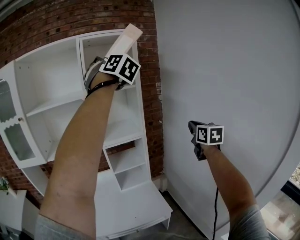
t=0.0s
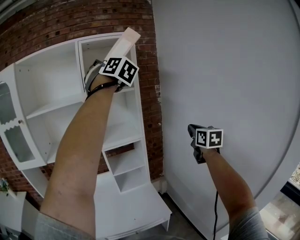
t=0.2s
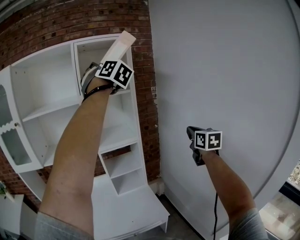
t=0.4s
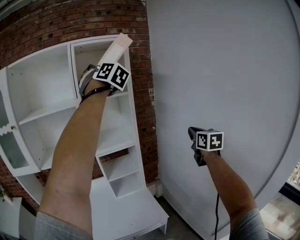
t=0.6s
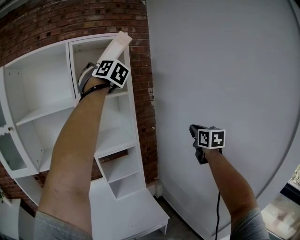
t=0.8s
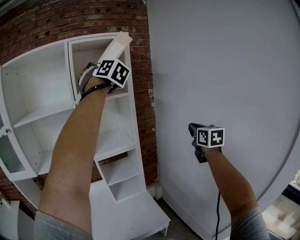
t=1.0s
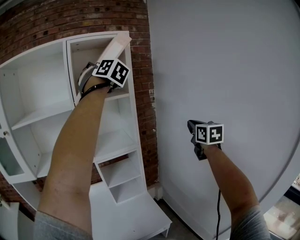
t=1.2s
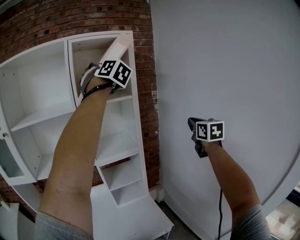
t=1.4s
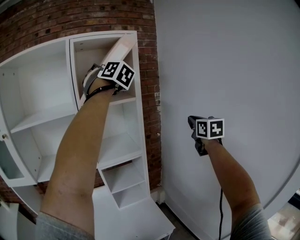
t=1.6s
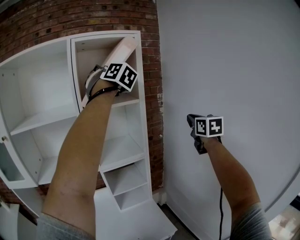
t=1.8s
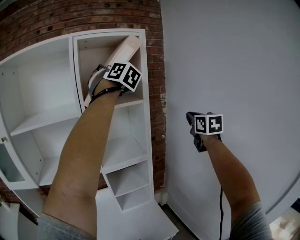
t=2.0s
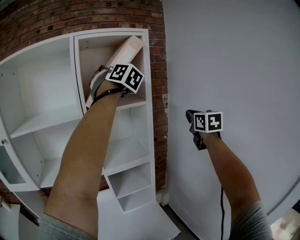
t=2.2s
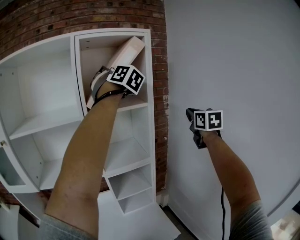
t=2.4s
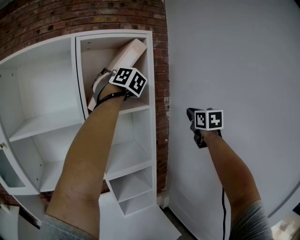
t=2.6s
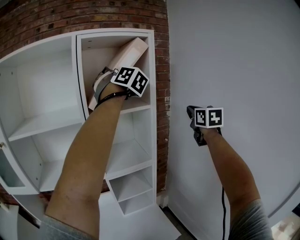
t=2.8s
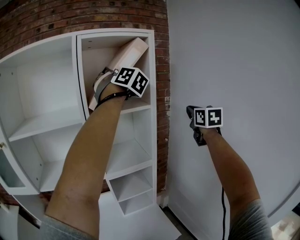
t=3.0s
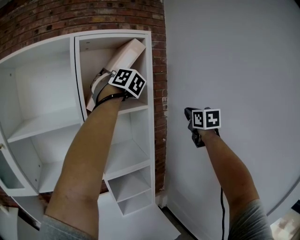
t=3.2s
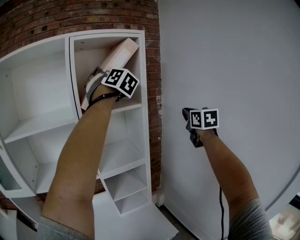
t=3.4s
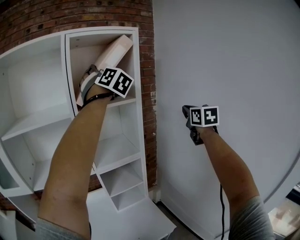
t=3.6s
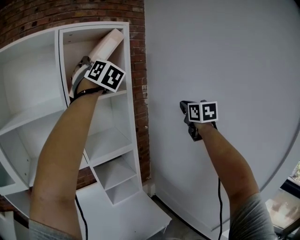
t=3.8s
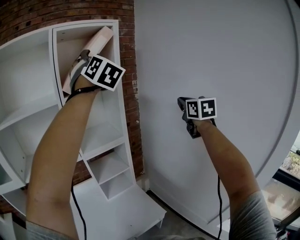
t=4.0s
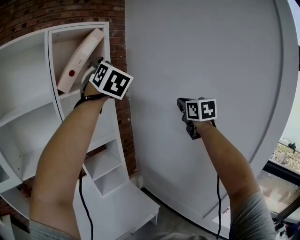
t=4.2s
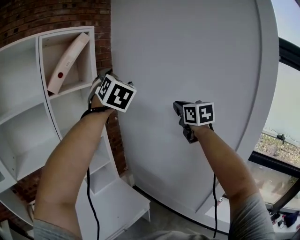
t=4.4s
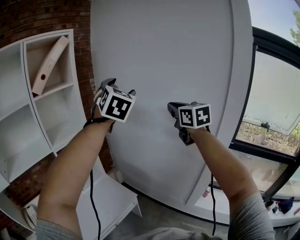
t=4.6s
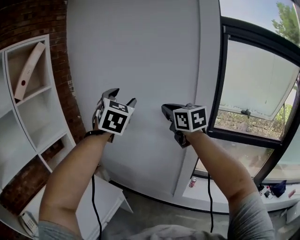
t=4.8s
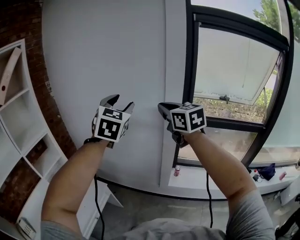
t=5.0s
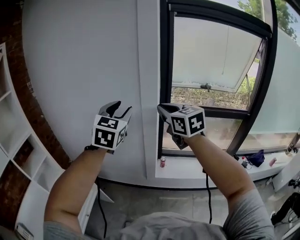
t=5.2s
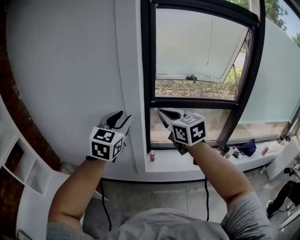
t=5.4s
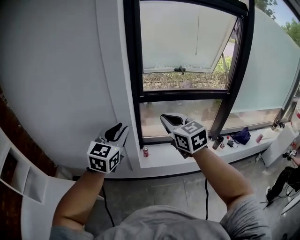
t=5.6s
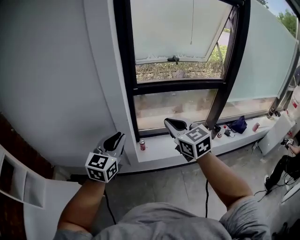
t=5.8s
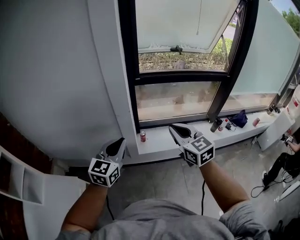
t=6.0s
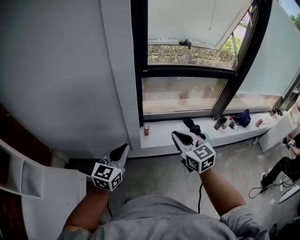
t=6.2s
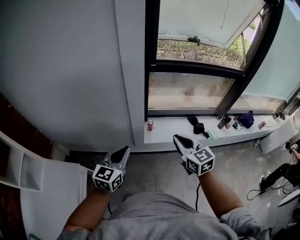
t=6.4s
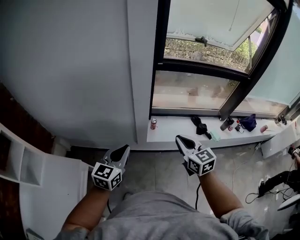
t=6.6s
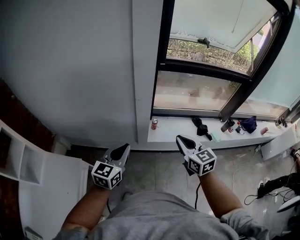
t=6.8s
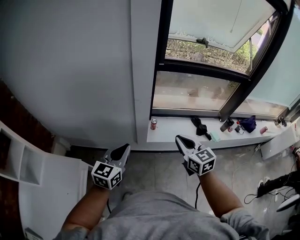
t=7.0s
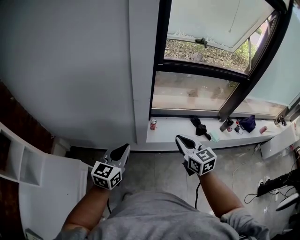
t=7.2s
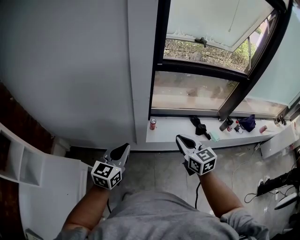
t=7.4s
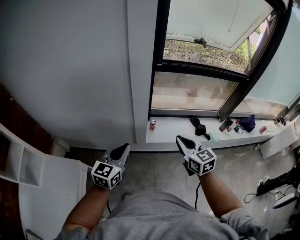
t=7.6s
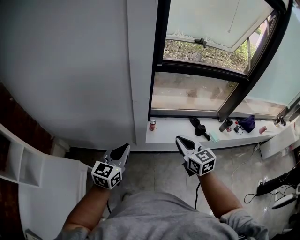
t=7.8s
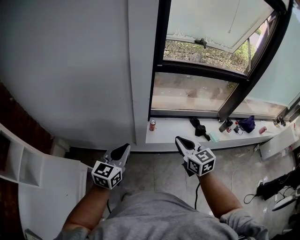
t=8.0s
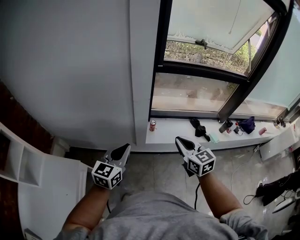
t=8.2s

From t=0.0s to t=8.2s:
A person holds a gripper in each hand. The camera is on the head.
From t=0.0s to t=1.6s: The right gripper goes approximately 15 cm forward and upward; the left gripper shifts some 15 cm forward.
From t=1.6s to t=3.2s: The right gripper goes some 10 cm forward and upward. Meanwhile the left gripper moves forward, some 5 cm.
From t=3.2s to t=5.0s: Both grippers are carried some 70 cm. The right gripper turns by about 30 degrees. The left gripper swivels approximately 90 degrees.
From t=5.0s to t=6.6s: Both grippers move downward, roughly 40 cm. The left gripper swivels some 50 degrees, and closes its fingers, while the right gripper rotates about 20 degrees.
From t=6.6s to t=8.2s: The two grippers keep their place.

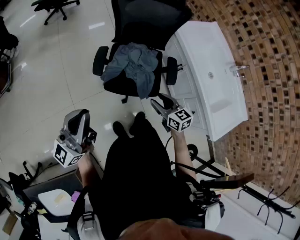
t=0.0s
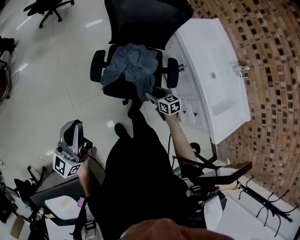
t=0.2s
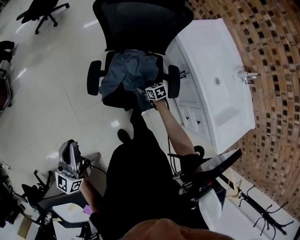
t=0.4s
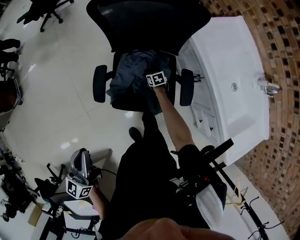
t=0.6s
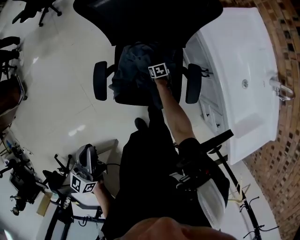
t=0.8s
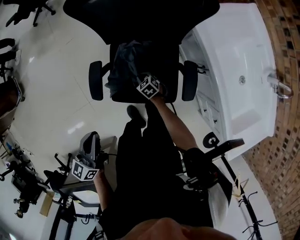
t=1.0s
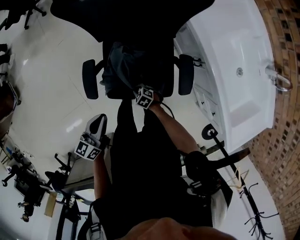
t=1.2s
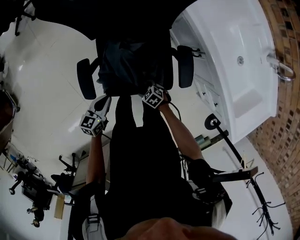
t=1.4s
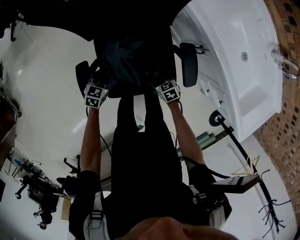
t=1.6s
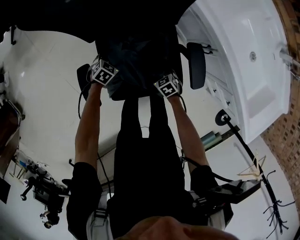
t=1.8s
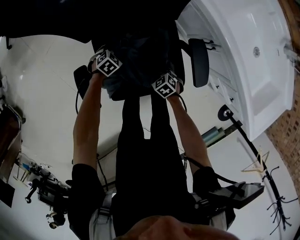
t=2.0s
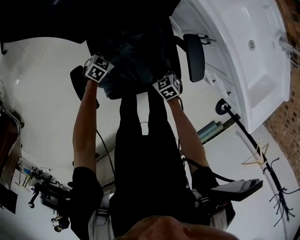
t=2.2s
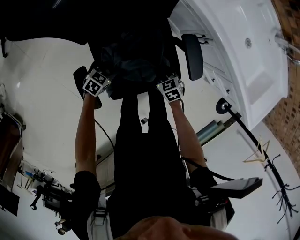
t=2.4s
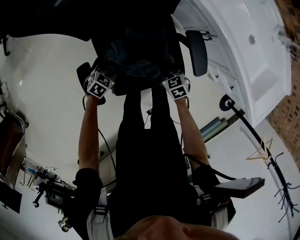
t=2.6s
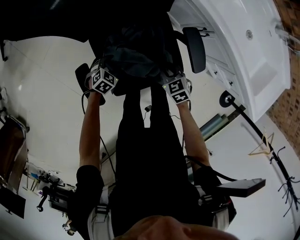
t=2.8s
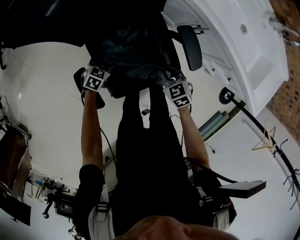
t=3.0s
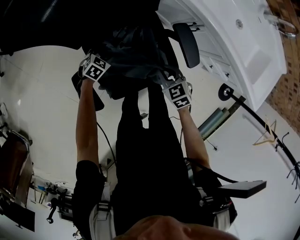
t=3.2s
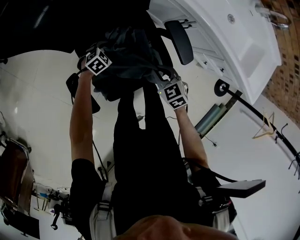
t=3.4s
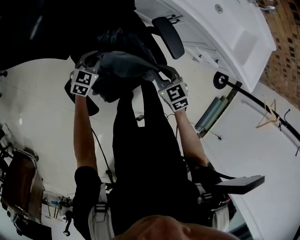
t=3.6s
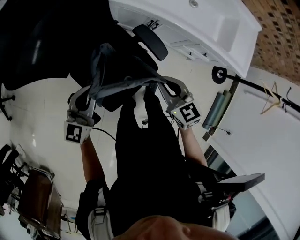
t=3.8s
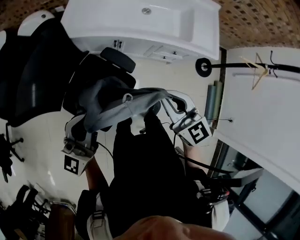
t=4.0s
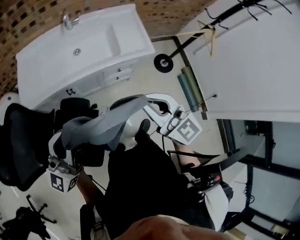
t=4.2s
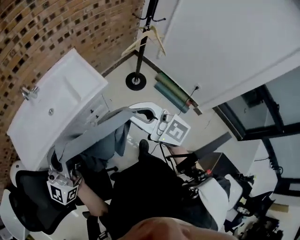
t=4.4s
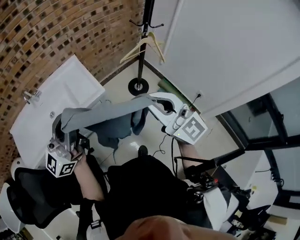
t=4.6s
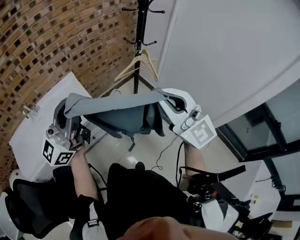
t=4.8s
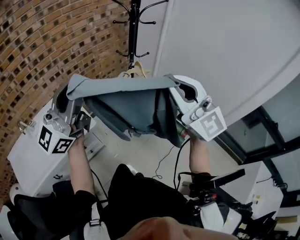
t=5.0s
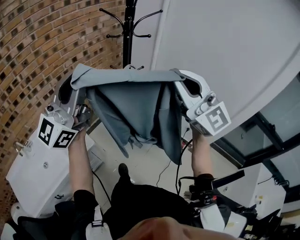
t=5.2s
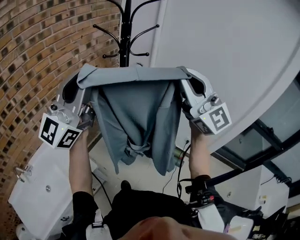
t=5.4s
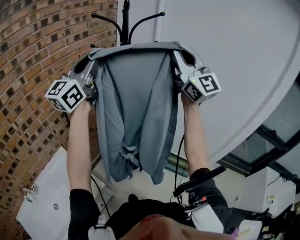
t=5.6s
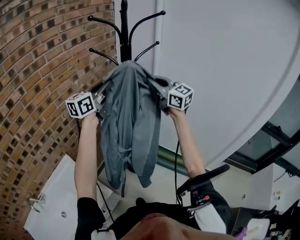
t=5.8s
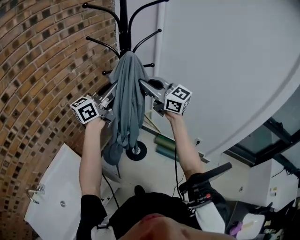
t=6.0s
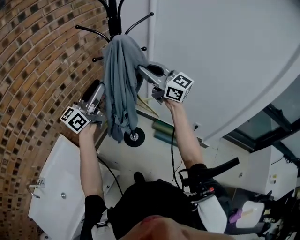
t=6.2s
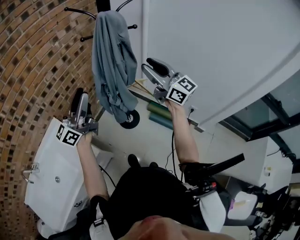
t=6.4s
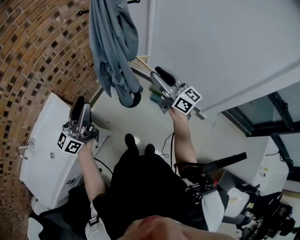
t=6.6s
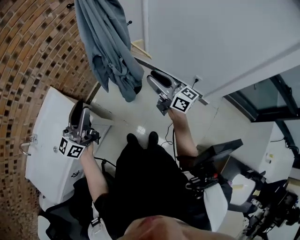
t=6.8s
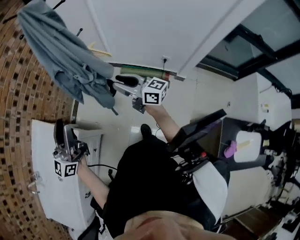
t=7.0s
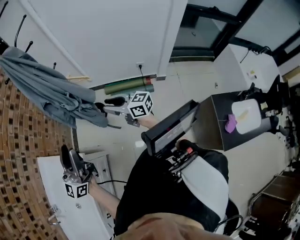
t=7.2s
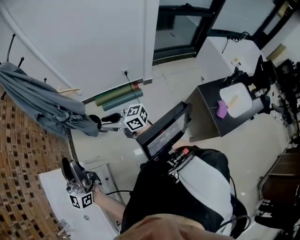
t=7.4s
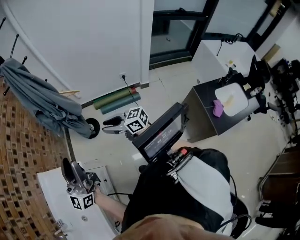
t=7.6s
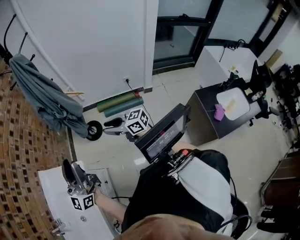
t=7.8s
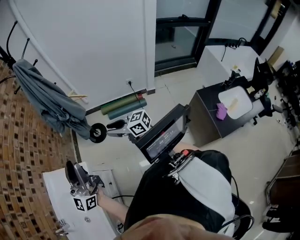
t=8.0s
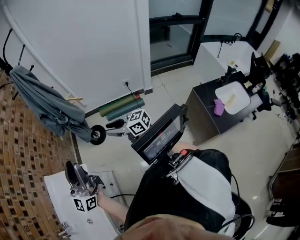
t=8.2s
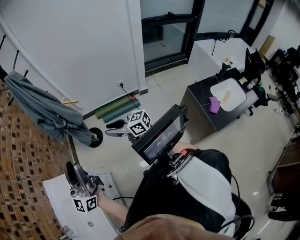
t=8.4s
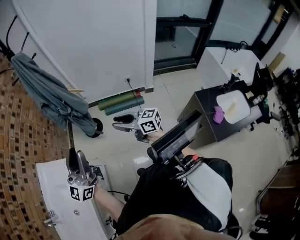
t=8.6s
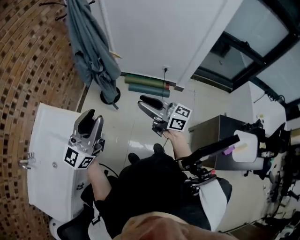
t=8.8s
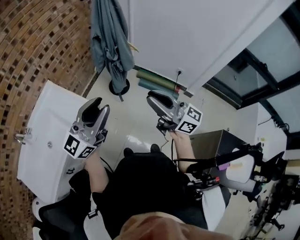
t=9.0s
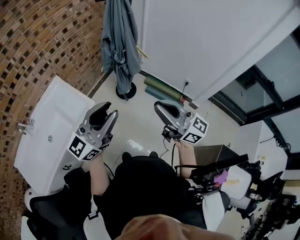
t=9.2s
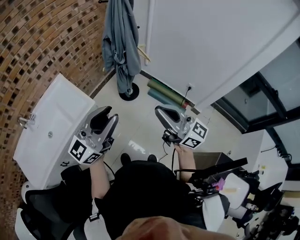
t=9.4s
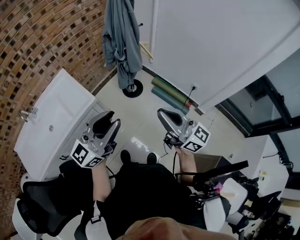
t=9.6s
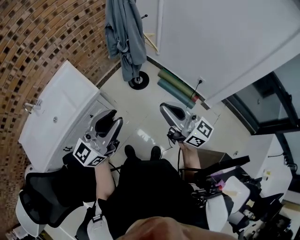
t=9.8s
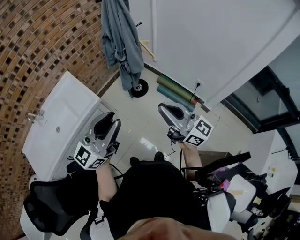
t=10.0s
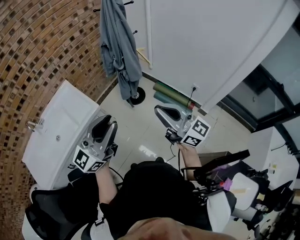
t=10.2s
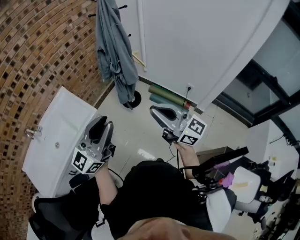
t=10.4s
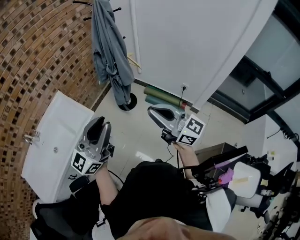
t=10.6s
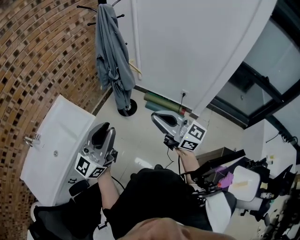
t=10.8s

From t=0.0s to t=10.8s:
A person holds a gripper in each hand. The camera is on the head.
From t=0.0s to t=1.6s: The two grippers go some 50 cm downward. The left gripper tilts its fingers some 70 degrees downward. The right gripper swivels some 30 degrees, and opens.
From t=1.6s to t=3.0s: The left gripper moves downward, roughly 5 cm, turns by some 20 degrees, and opens up, while the right gripper is displaced upward by roughly 10 cm, and closes up.
From t=3.0s to t=4.6s: The two grippers travel together, approximately 70 cm. The left gripper goes approximately 80 cm upward, tips its fingers upward by roughly 90 degrees, and closes; the right gripper tilts its fingers roughly 60 degrees upward.
From t=4.6s to t=6.2s: Both grippers are carried forward, some 50 cm. The left gripper changes its angle by some 30 degrees, and opens.
From t=6.2s to t=7.8s: The two grippers travel together, backward, some 40 cm. The right gripper goes approximately 25 cm downward, and changes its angle by some 40 degrees.
From t=7.8s to t=9.2s: The right gripper goes roughly 20 cm upward, to the right and backward, and changes its angle by some 30 degrees; the left gripper travels to the right by about 10 cm.
From t=9.2s to t=10.8s: The grippers both shift backward by about 5 cm.

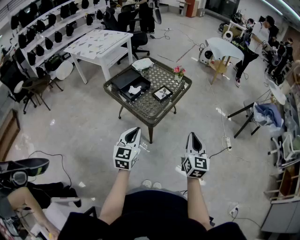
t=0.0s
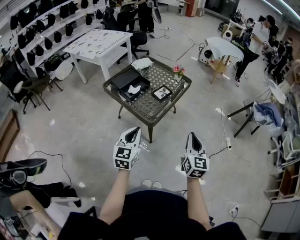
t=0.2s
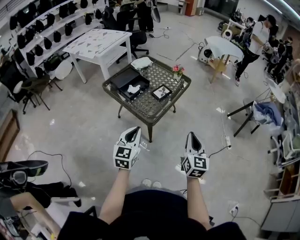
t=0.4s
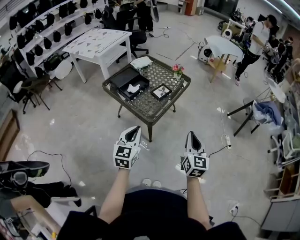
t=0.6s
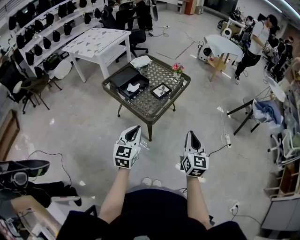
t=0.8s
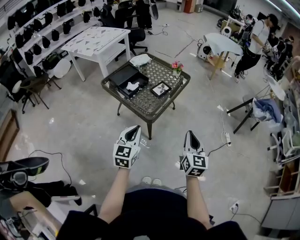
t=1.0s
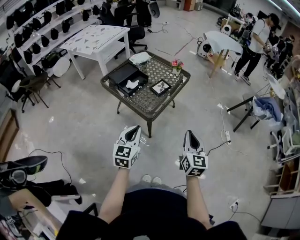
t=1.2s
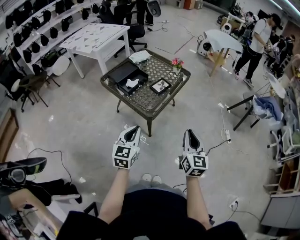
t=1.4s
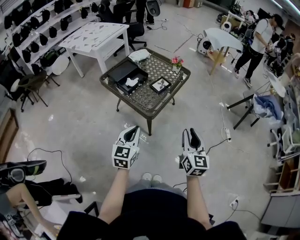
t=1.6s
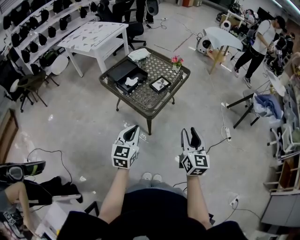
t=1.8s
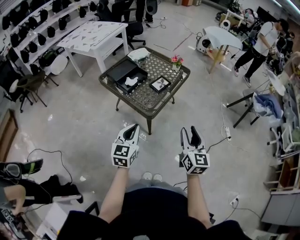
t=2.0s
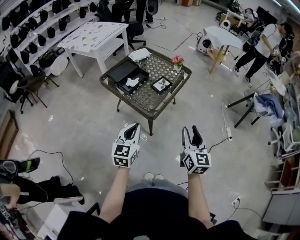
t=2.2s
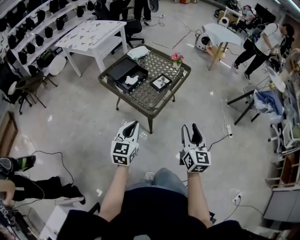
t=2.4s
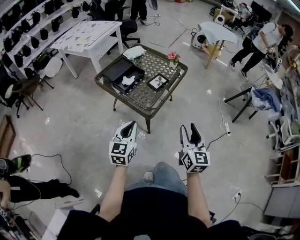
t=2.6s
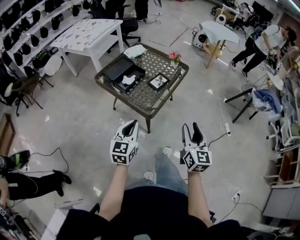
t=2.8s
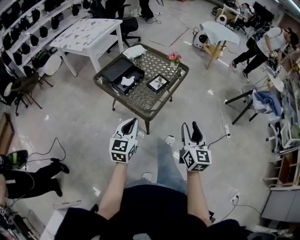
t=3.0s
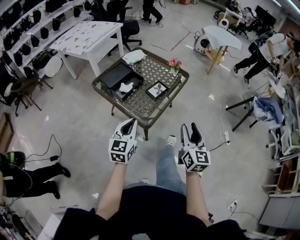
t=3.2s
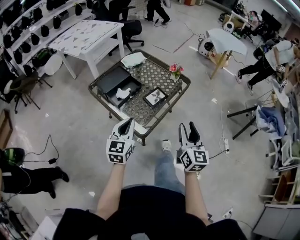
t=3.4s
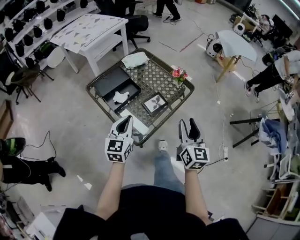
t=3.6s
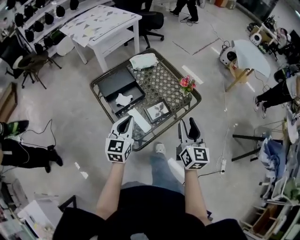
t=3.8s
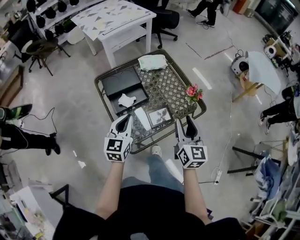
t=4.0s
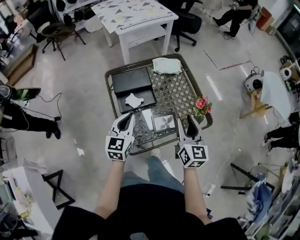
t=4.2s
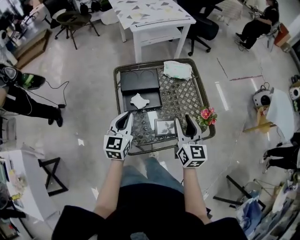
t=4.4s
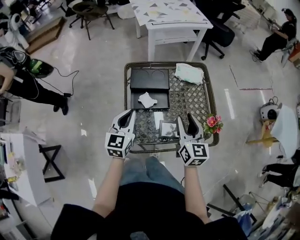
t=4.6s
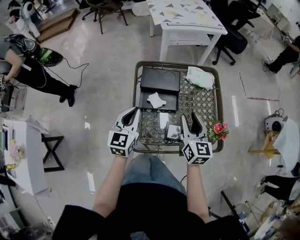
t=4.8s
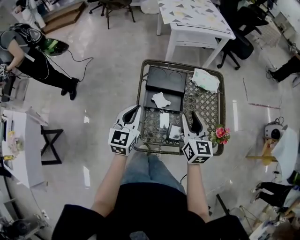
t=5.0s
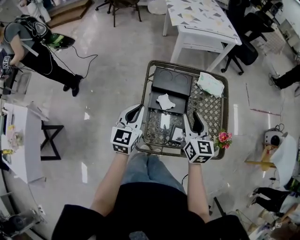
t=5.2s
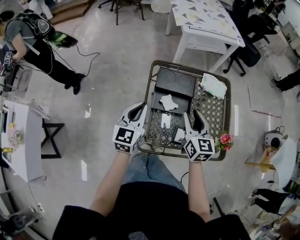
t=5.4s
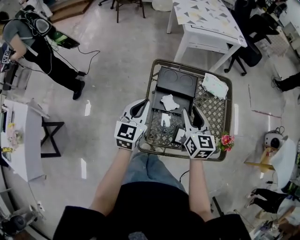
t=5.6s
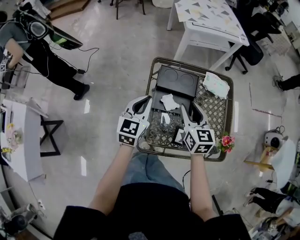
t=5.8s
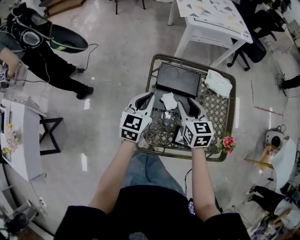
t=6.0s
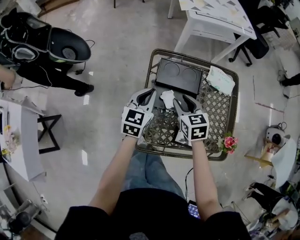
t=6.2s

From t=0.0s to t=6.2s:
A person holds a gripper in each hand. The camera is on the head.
From t=0.0s to t=1.6s: The grippers stay close to where they were, moving slightly.
From t=1.6s to t=3.2s: The two grippers go roughly 10 cm forward.
From t=3.2s to t=4.6s: The left gripper ends up approximately 25 cm from where it was, and rotates about 50 degrees. The right gripper ends up some 50 cm from where it was, and turns by some 50 degrees.
From t=4.6s to t=6.2s: The right gripper travels forward, to the left and downward by about 25 cm, and turns by roughly 40 degrees; the left gripper shifts approximately 15 cm forward and downward.
